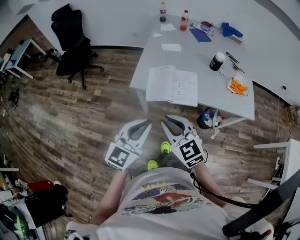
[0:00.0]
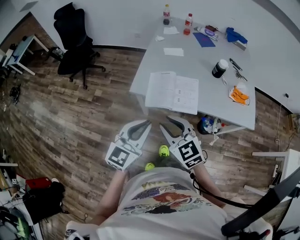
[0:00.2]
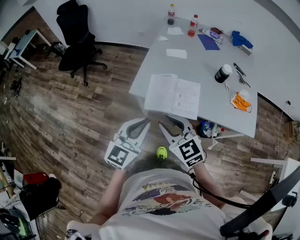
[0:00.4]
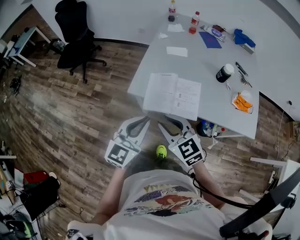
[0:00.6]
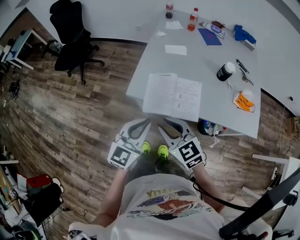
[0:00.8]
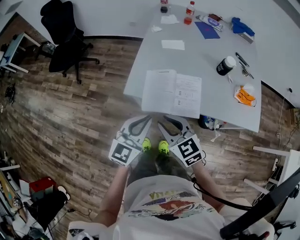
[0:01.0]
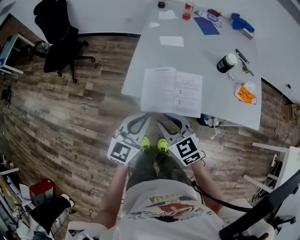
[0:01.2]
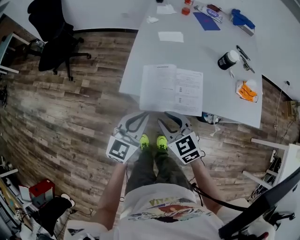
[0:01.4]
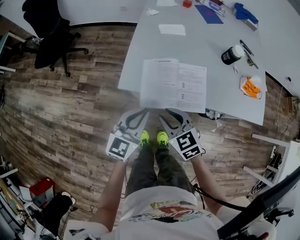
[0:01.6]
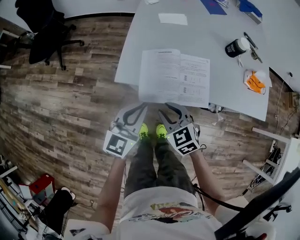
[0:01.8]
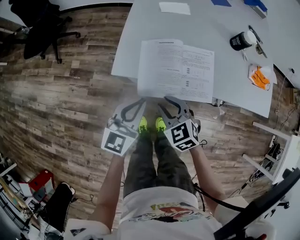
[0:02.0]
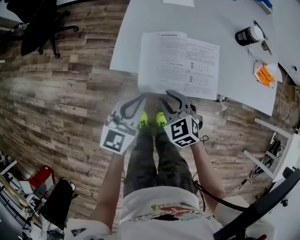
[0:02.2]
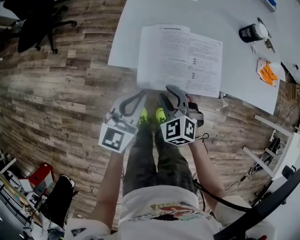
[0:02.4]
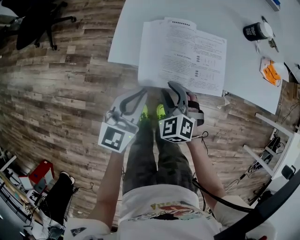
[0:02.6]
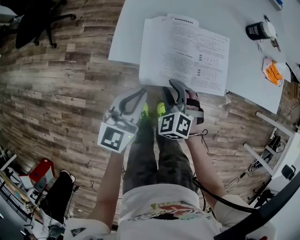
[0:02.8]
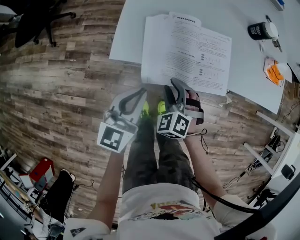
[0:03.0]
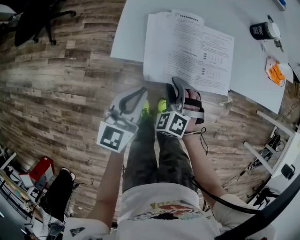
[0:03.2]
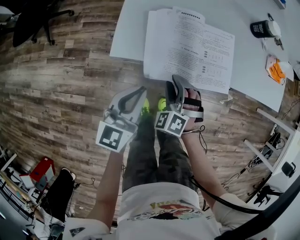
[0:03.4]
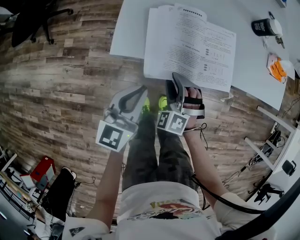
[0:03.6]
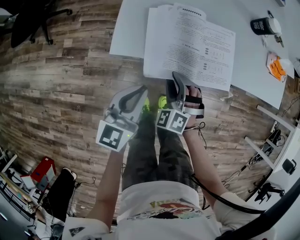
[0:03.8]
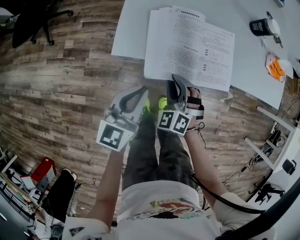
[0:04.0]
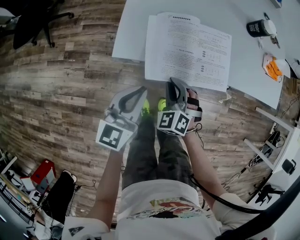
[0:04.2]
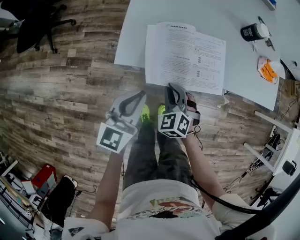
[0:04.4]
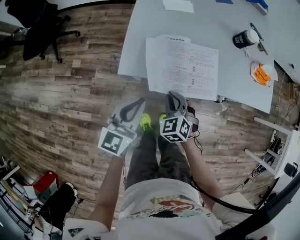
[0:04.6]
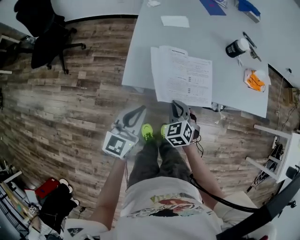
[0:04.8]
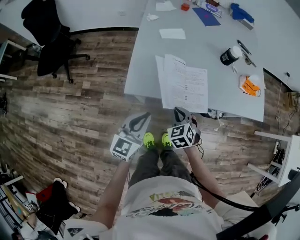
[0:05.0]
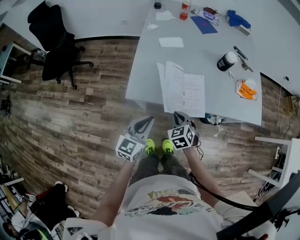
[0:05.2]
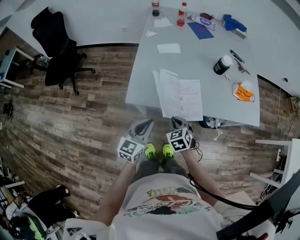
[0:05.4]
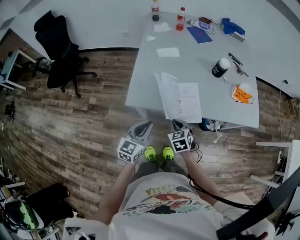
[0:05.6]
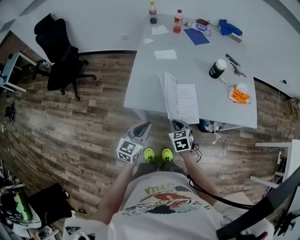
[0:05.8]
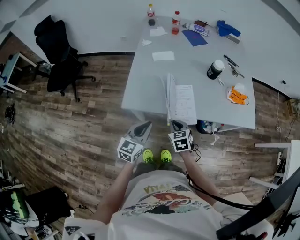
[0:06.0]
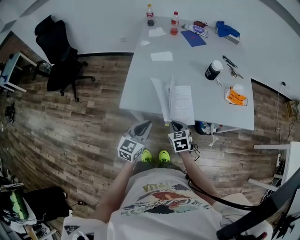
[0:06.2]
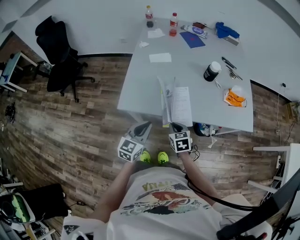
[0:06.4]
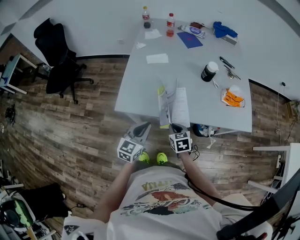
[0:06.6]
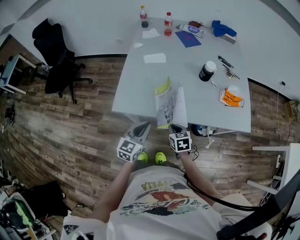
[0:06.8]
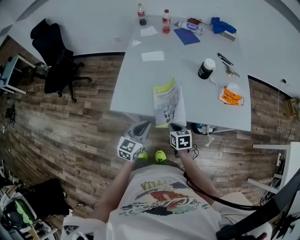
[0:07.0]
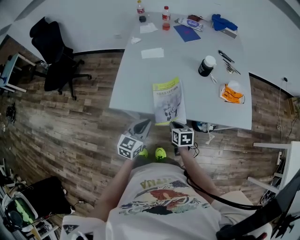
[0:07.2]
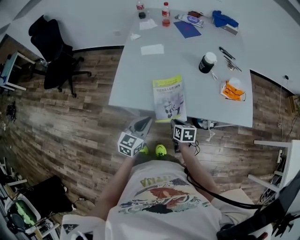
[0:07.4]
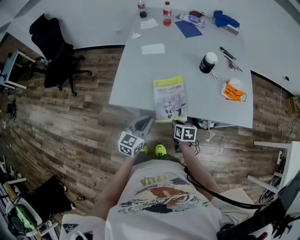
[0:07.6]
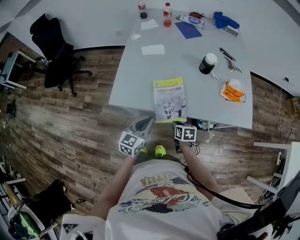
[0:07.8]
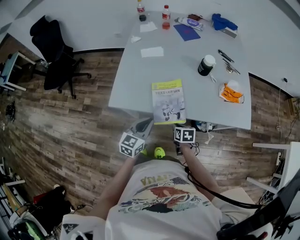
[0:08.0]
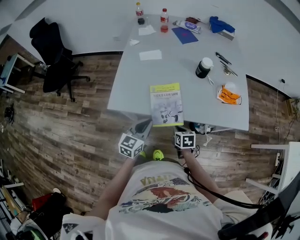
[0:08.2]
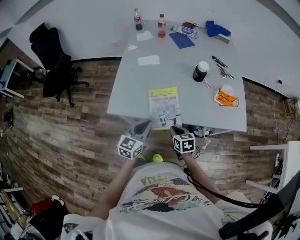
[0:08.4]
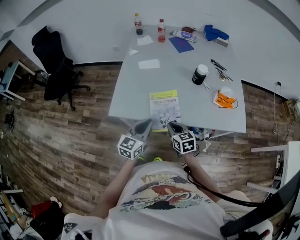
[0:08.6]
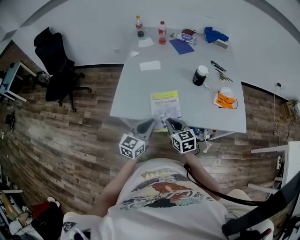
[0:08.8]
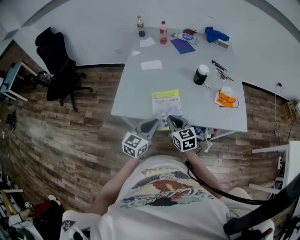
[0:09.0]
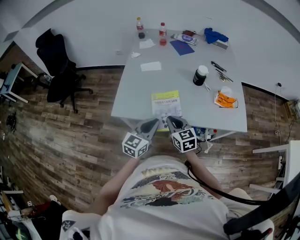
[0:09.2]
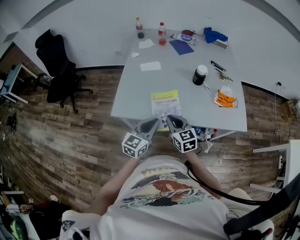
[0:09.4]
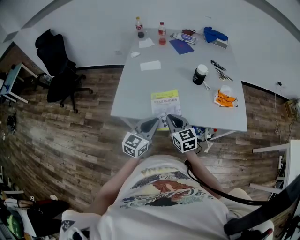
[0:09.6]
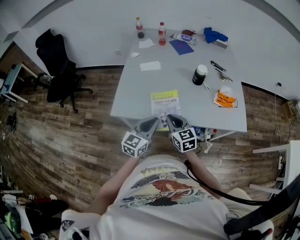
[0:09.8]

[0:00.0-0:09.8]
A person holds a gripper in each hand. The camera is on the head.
0:00.0 to 0:01.4: Both grippers move forward and downward, some 25 cm.
0:01.4 to 0:02.8: The grippers both shift downward by roughly 20 cm. The right gripper changes its angle by approximately 40 degrees.
0:02.8 to 0:04.2: The grippers stay close to where they were, moving slightly.
0:04.2 to 0:05.6: Both grippers move upward and to the right, roughly 15 cm. The right gripper rotates approximately 30 degrees.
0:05.6 to 0:07.0: Both grippers travel together to the right, about 10 cm. The right gripper changes its angle by roughly 20 degrees.
0:08.4 to 0:09.8: The right gripper heads upward, covering approximately 10 cm, and rotates about 30 degrees, while the left gripper moves upward, approximately 5 cm.

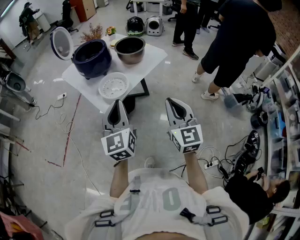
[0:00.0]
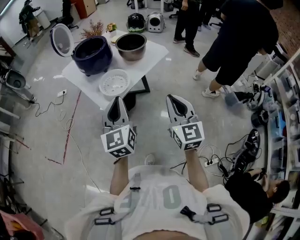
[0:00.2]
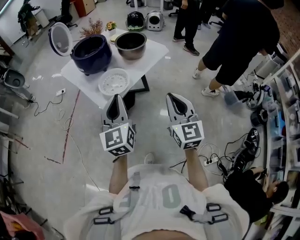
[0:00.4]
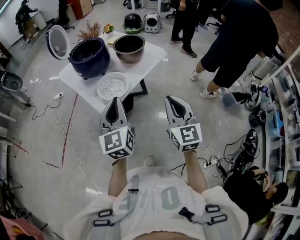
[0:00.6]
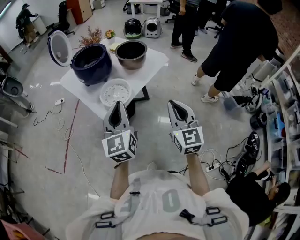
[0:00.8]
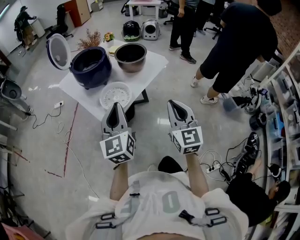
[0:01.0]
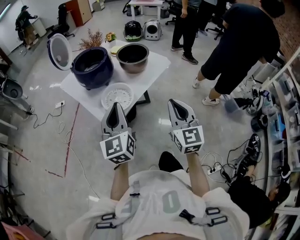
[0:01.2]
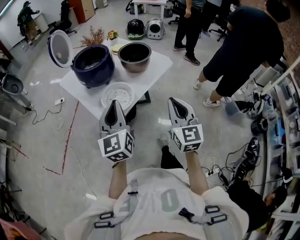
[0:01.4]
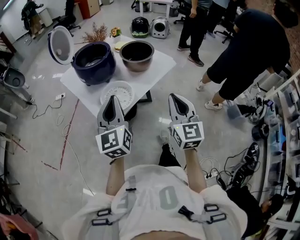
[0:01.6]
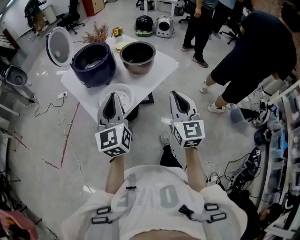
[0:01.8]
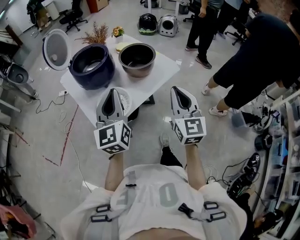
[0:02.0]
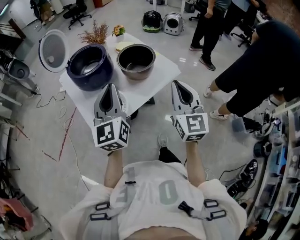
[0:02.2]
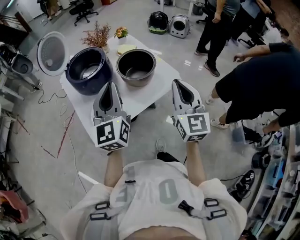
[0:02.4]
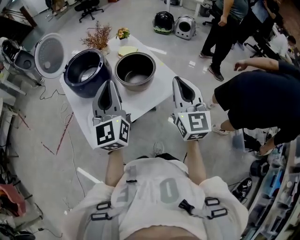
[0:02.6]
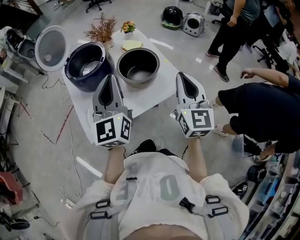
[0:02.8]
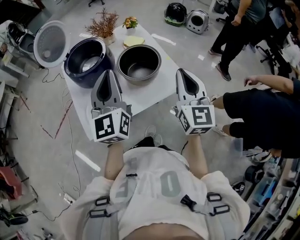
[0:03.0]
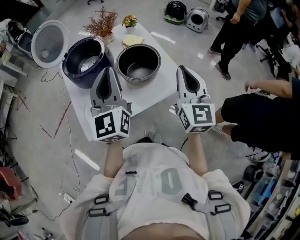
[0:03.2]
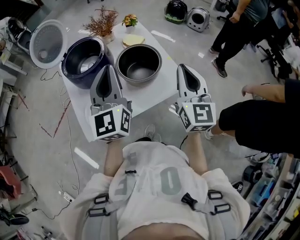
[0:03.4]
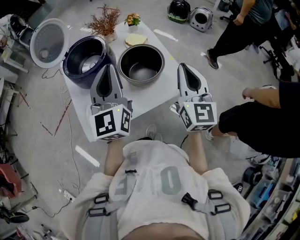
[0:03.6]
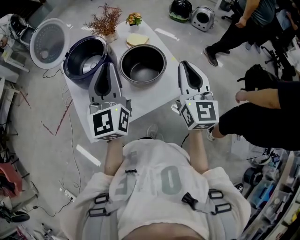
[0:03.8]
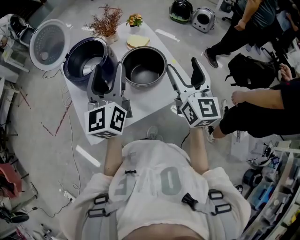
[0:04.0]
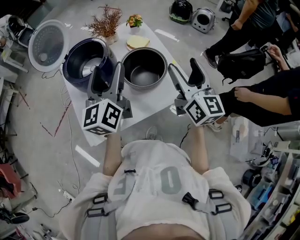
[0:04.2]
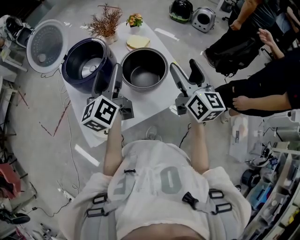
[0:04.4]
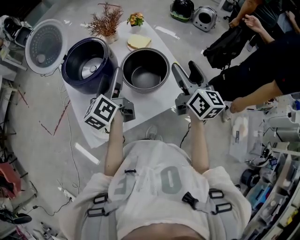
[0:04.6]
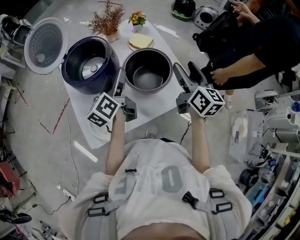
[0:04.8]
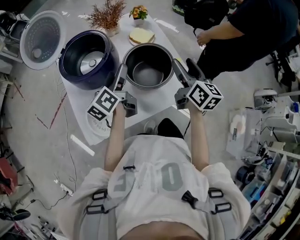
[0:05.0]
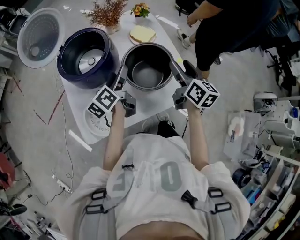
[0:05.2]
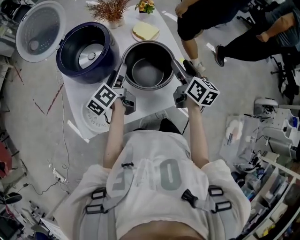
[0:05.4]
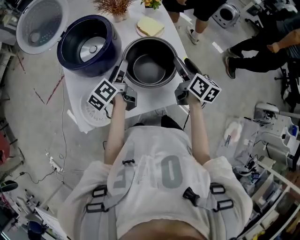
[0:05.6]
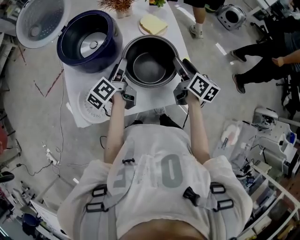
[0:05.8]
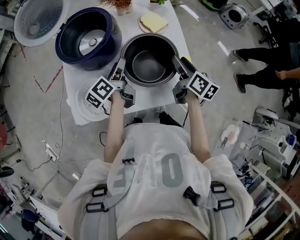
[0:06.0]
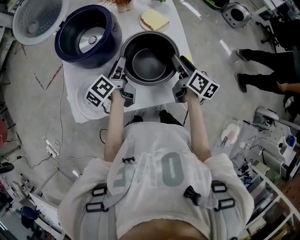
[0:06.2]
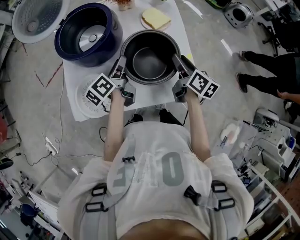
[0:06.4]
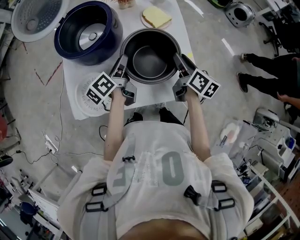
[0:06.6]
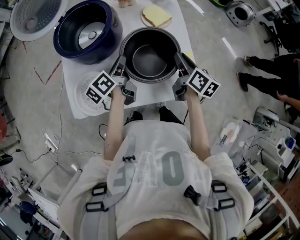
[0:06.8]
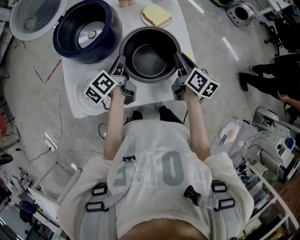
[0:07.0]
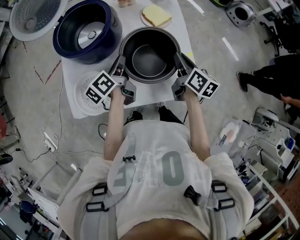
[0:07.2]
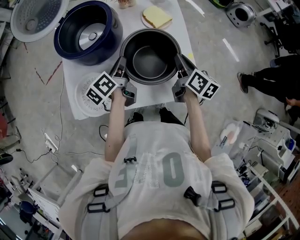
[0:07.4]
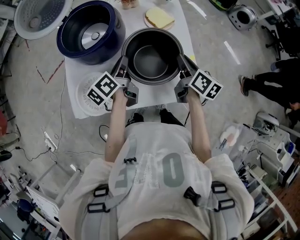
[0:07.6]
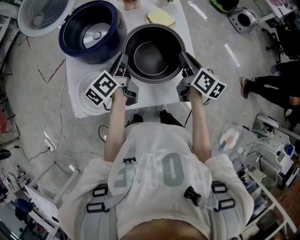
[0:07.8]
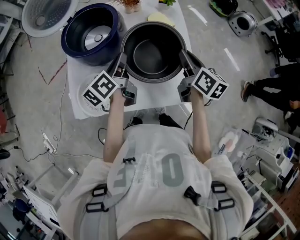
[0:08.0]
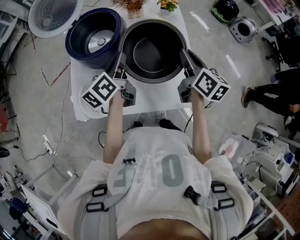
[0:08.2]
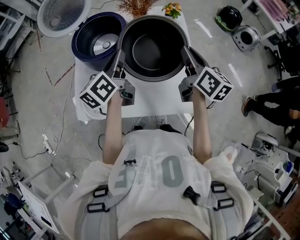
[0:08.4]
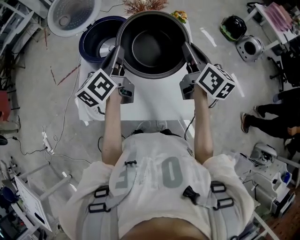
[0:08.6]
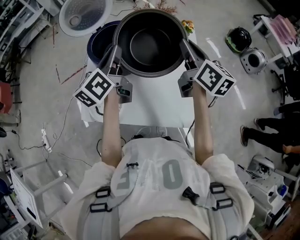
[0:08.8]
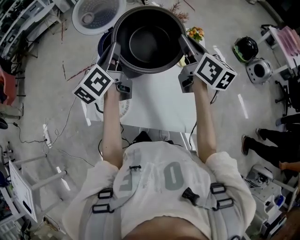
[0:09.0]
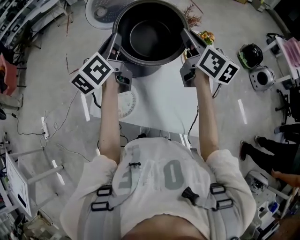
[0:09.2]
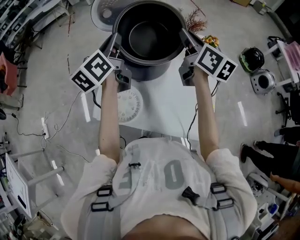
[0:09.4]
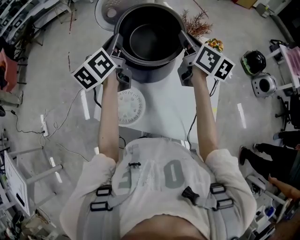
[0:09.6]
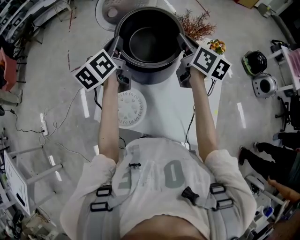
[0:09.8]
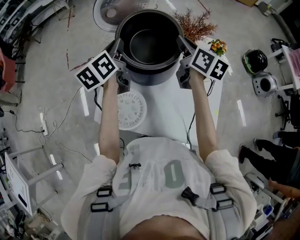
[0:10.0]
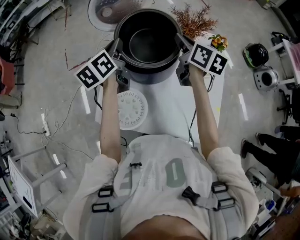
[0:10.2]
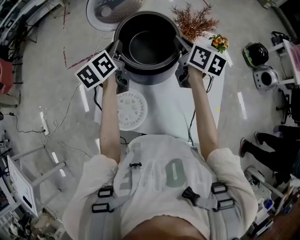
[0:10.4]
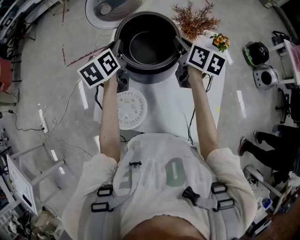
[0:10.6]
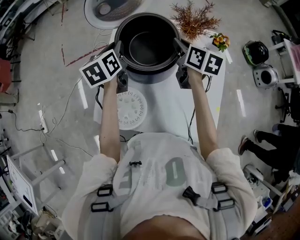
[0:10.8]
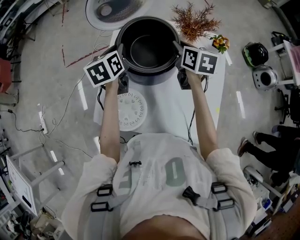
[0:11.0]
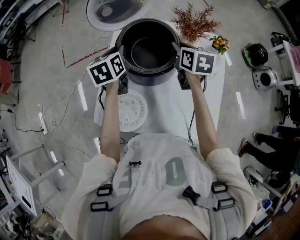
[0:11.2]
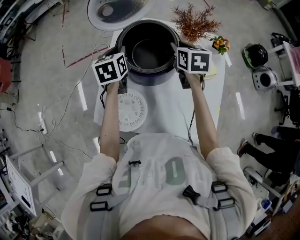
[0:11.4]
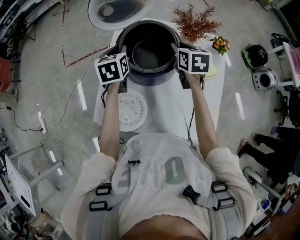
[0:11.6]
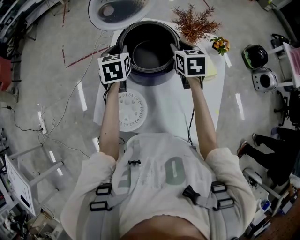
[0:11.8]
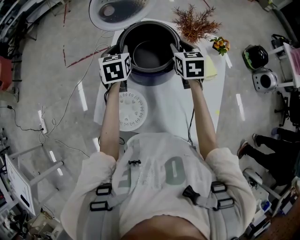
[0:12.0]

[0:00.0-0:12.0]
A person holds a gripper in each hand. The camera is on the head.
0:00.0 to 0:01.6: The two grippers go about 15 cm forward.
0:01.6 to 0:03.0: Both grippers travel together forward and to the right, some 30 cm.
0:03.0 to 0:04.4: The left gripper shifts approximately 15 cm forward and downward, changes its angle by some 30 degrees, and opens its fingers. The right gripper moves forward, some 10 cm, rotates some 20 degrees, and opens.
0:04.4 to 0:06.0: The right gripper travels downward and forward by about 25 cm, and turns by some 40 degrees, while the left gripper moves downward, about 20 cm, and changes its angle by some 40 degrees.
0:06.0 to 0:07.6: The right gripper closes up. The left gripper closes.
0:07.6 to 0:09.0: The right gripper moves upward and forward, roughly 25 cm, and rotates some 30 degrees, while the left gripper shifts about 25 cm upward, and rotates some 30 degrees.
0:09.0 to 0:10.4: The grippers both shift forward, to the left and downward by approximately 20 cm. The left gripper swivels approximately 20 degrees.
0:10.4 to 0:12.0: Both grippers travel together downward, roughly 5 cm. The right gripper swivels roughly 40 degrees; the left gripper swivels about 30 degrees.

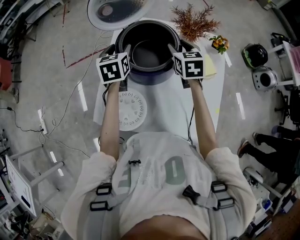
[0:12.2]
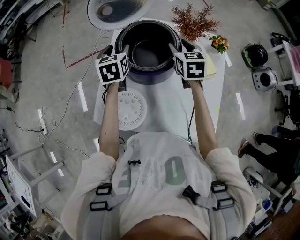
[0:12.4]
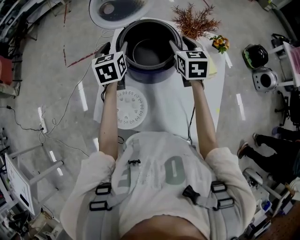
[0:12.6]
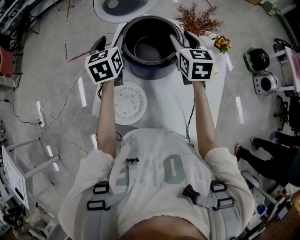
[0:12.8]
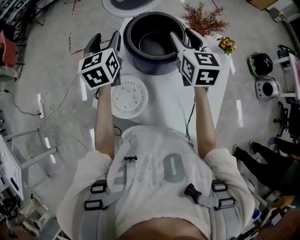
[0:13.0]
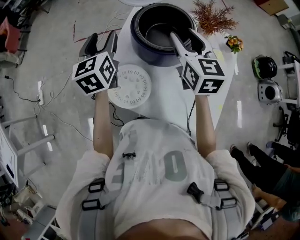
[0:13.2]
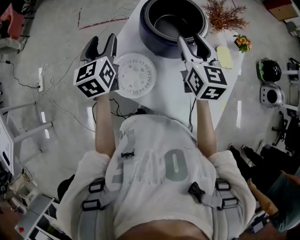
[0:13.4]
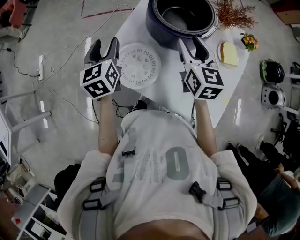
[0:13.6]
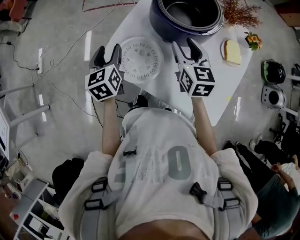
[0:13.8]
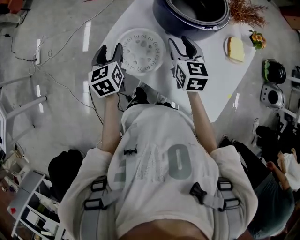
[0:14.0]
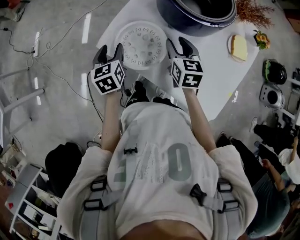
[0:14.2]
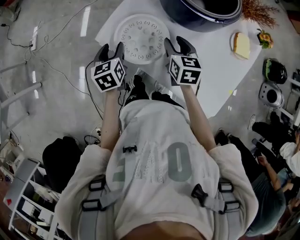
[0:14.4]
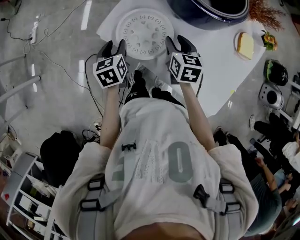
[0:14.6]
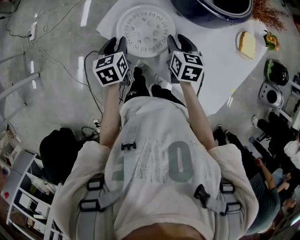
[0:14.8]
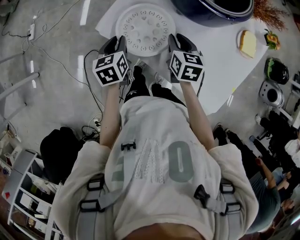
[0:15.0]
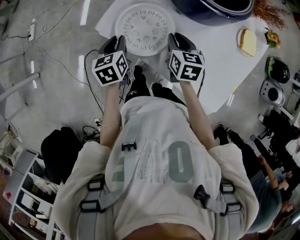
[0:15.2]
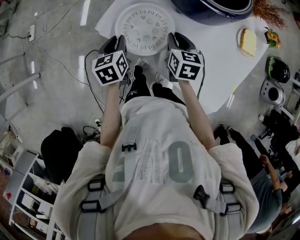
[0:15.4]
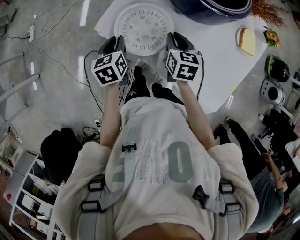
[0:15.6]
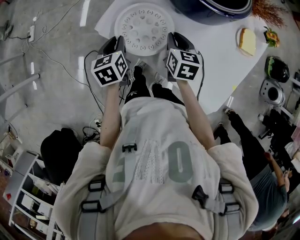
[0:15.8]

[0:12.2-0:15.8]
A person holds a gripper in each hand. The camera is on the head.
0:12.2 to 0:14.0: The left gripper shifts roughly 30 cm backward, to the left and downward, and rotates some 30 degrees. The right gripper heads to the left, backward and downward, covering some 20 cm.
0:14.0 to 0:15.8: The left gripper travels downward and backward by about 10 cm, and closes up, while the right gripper travels downward by roughly 10 cm, and closes up.
